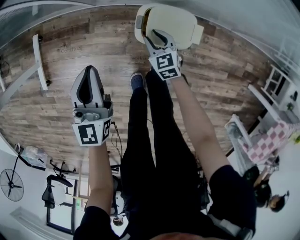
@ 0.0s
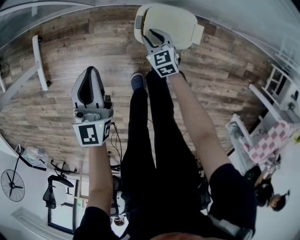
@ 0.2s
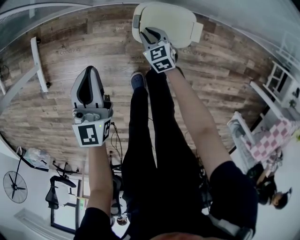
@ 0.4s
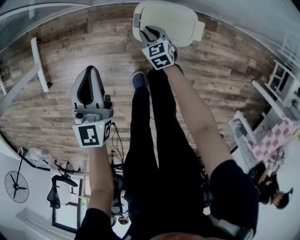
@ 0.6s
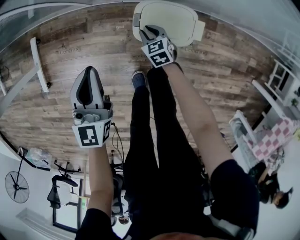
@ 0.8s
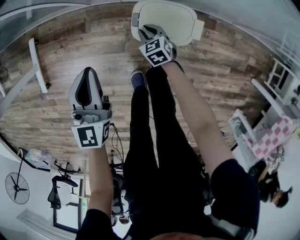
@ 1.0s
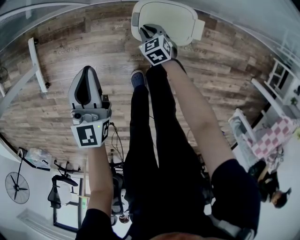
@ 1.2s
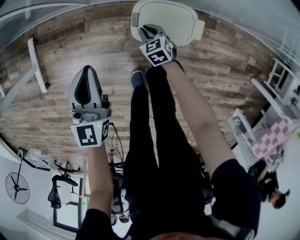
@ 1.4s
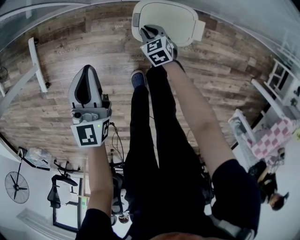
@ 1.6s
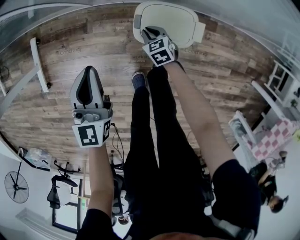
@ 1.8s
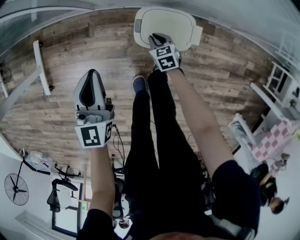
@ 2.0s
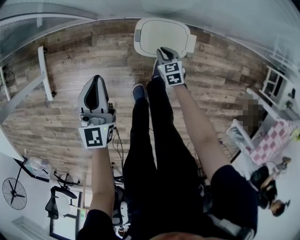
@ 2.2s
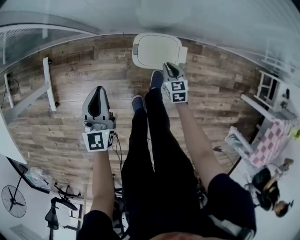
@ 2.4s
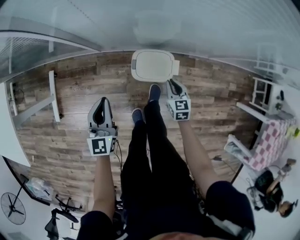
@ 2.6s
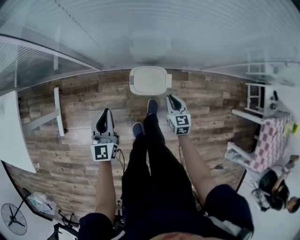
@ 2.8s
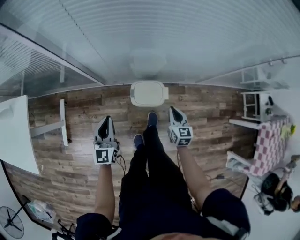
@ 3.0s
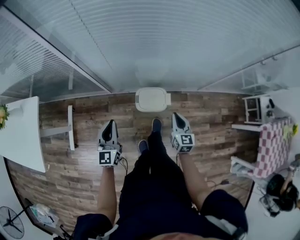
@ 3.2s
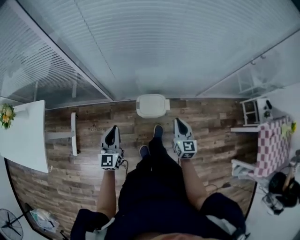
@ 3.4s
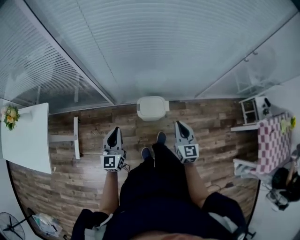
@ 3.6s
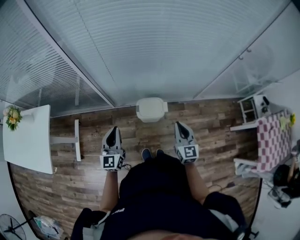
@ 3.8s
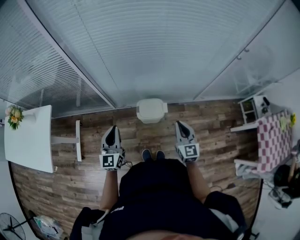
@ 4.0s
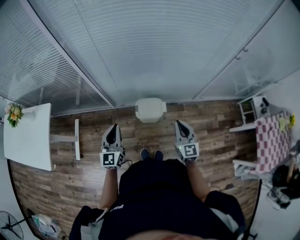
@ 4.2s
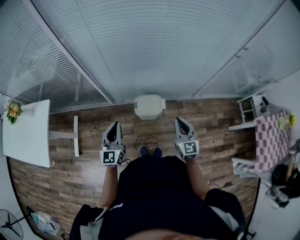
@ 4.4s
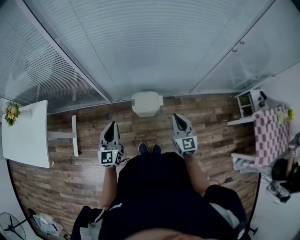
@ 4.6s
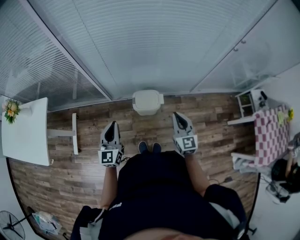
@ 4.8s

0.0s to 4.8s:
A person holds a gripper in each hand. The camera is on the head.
0.0s to 1.6s: The right gripper moves downward, some 10 cm, and closes up.
1.6s to 3.2s: The right gripper shifts roughly 40 cm upward, and points its fingers approximately 30 degrees further upward. Meanwhile the left gripper shifts approximately 25 cm upward.
3.2s to 4.8s: The left gripper is displaced backward and upward by some 10 cm. The right gripper goes approximately 15 cm upward and backward.

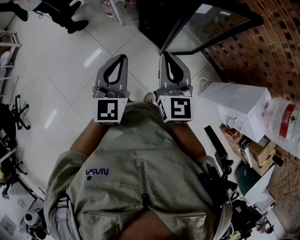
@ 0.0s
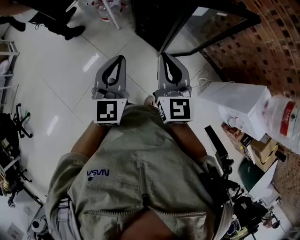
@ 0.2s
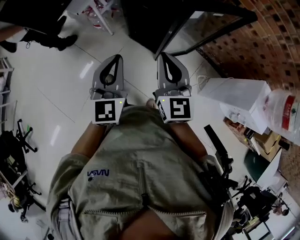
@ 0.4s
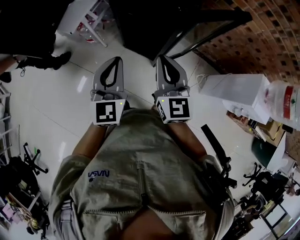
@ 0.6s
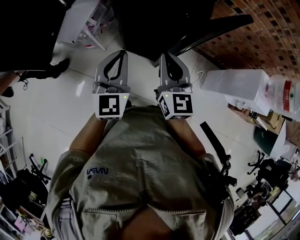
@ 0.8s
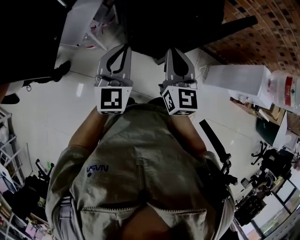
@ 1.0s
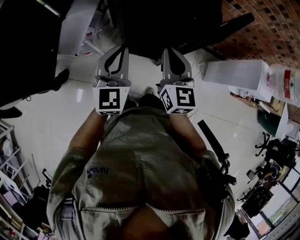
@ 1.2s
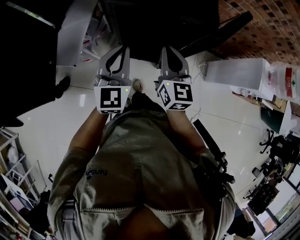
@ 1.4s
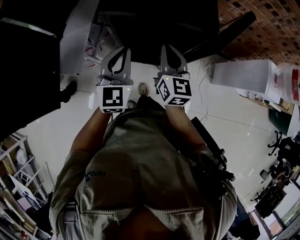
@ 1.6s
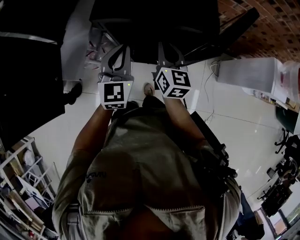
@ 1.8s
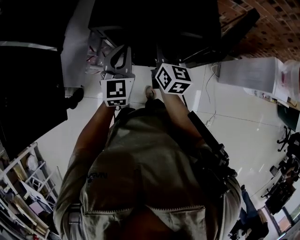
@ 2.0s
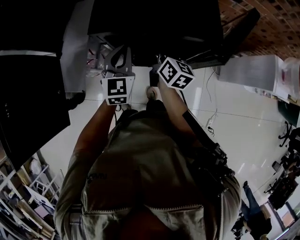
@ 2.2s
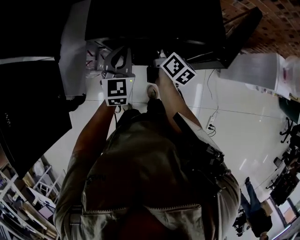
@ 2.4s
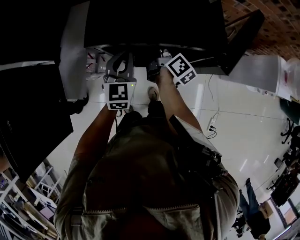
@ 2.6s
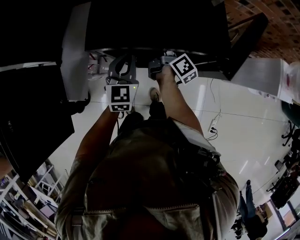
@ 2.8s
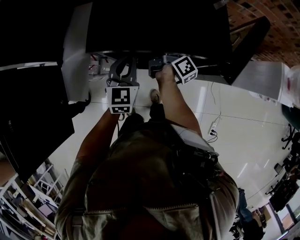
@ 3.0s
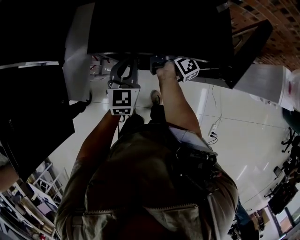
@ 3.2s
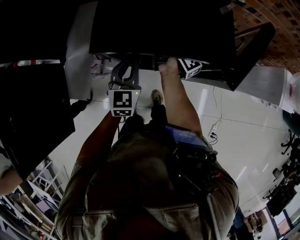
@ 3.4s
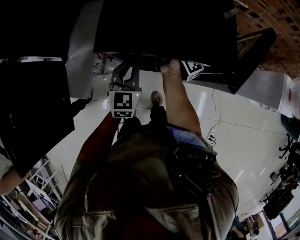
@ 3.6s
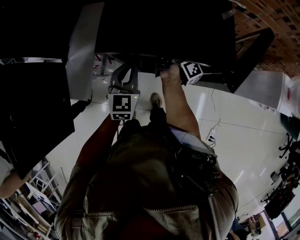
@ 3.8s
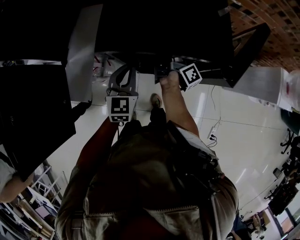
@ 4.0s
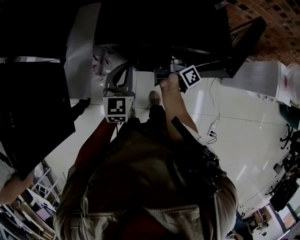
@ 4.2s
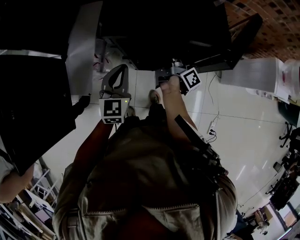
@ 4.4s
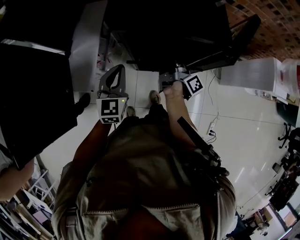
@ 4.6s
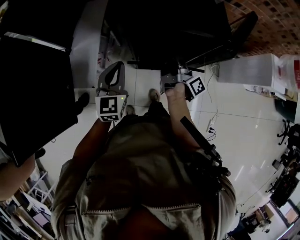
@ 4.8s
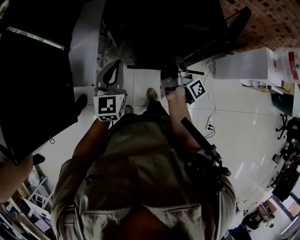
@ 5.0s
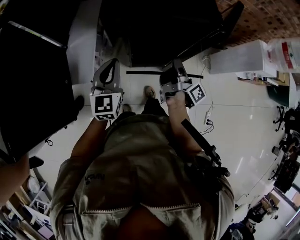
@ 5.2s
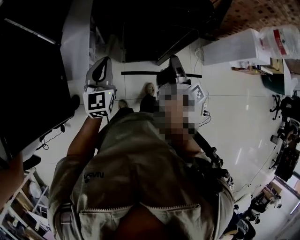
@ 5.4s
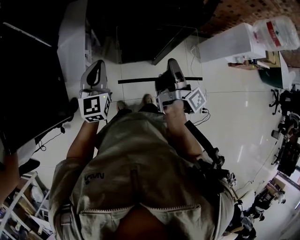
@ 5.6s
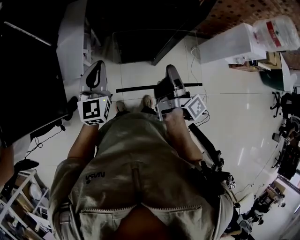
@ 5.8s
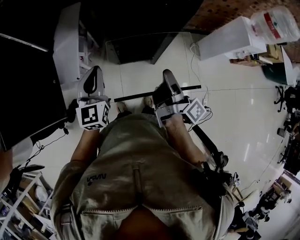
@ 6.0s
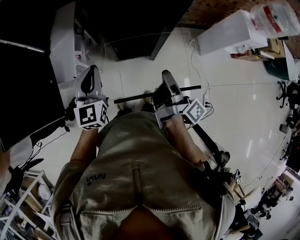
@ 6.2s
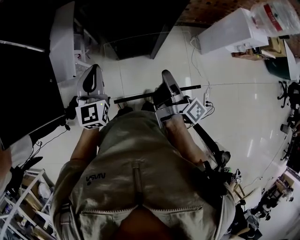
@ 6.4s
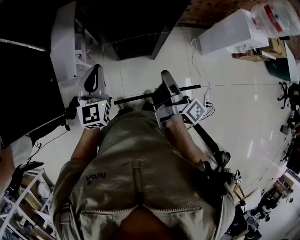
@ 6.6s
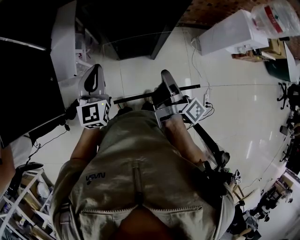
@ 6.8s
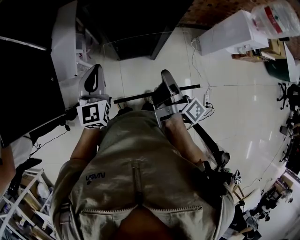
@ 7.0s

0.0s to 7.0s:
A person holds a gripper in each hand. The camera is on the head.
0.0s to 1.4s: The right gripper changes place by approximately 25 cm, and changes its angle by approximately 40 degrees. The left gripper moves approximately 35 cm, and swivels about 30 degrees.
1.4s to 2.8s: Both grippers travel together forward and downward, roughly 20 cm. The right gripper twists roughly 70 degrees clockwise, seen from behind, and opens.
2.8s to 4.2s: The left gripper ends up approximately 5 cm from where it was. The right gripper rotates some 20 degrees, and closes.
4.2s to 5.6s: The left gripper shifts approximately 15 cm backward and to the left. Meanwhile the right gripper goes about 30 cm backward and upward.
5.6s to 7.0s: The right gripper travels backward by roughly 10 cm, while the left gripper heads to the right, covering roughly 5 cm.

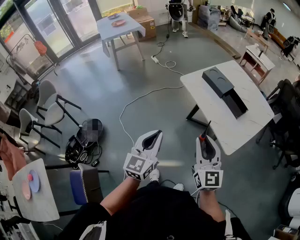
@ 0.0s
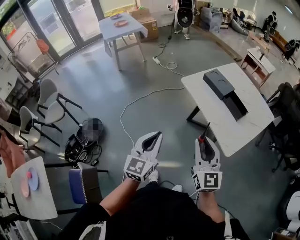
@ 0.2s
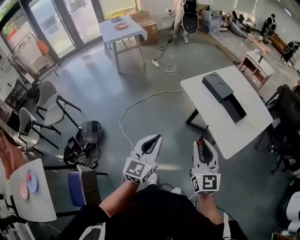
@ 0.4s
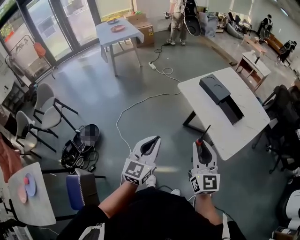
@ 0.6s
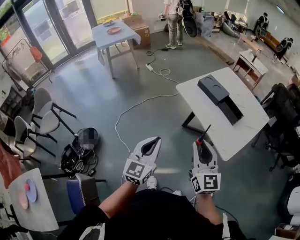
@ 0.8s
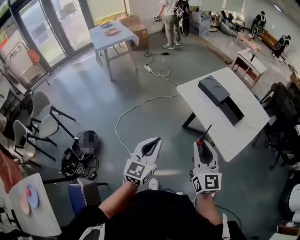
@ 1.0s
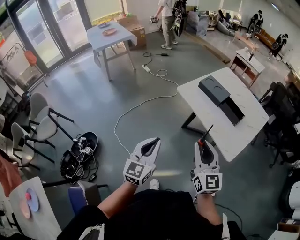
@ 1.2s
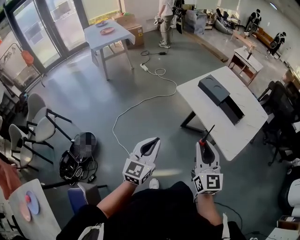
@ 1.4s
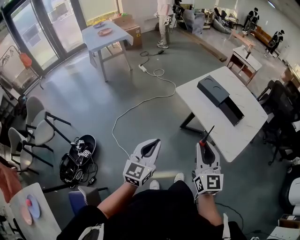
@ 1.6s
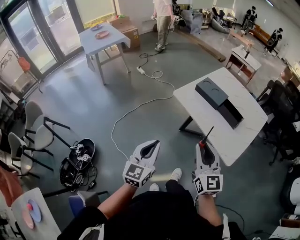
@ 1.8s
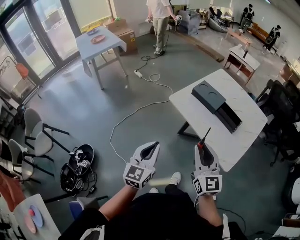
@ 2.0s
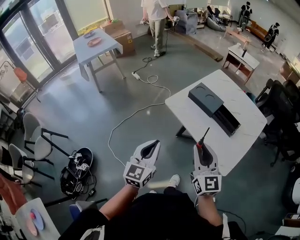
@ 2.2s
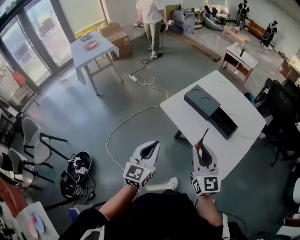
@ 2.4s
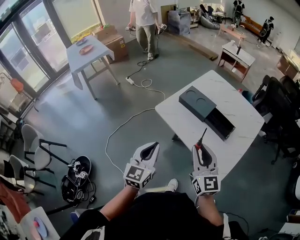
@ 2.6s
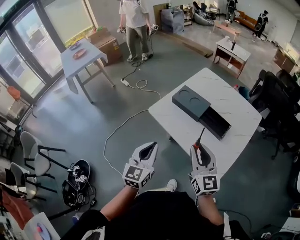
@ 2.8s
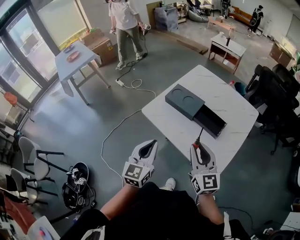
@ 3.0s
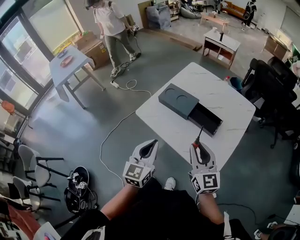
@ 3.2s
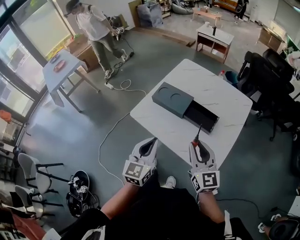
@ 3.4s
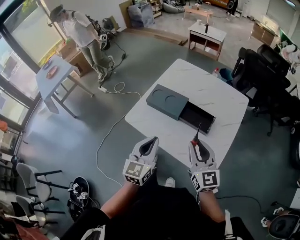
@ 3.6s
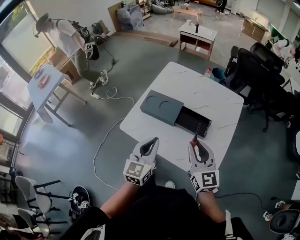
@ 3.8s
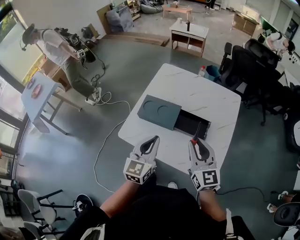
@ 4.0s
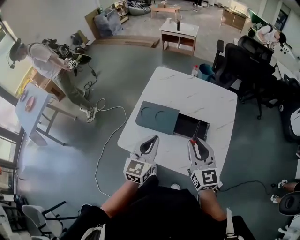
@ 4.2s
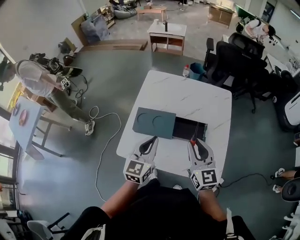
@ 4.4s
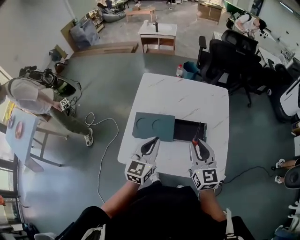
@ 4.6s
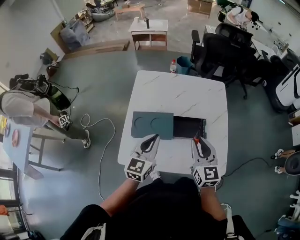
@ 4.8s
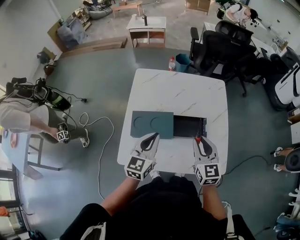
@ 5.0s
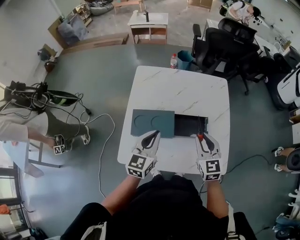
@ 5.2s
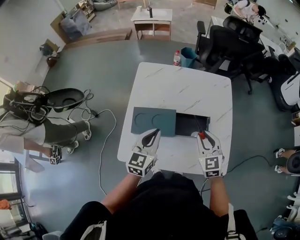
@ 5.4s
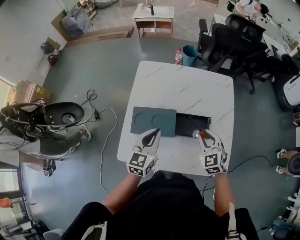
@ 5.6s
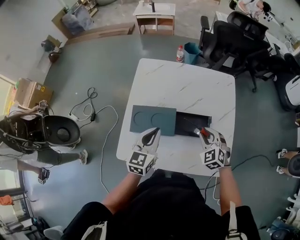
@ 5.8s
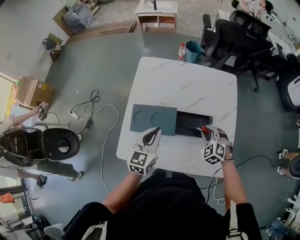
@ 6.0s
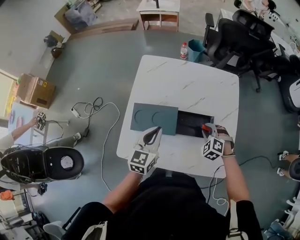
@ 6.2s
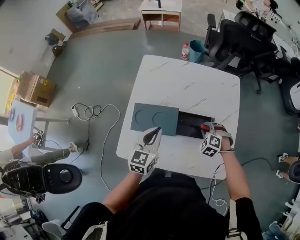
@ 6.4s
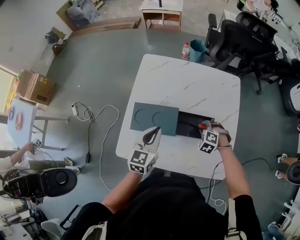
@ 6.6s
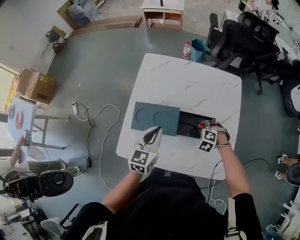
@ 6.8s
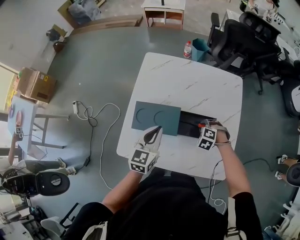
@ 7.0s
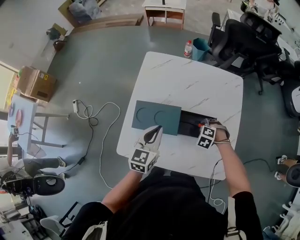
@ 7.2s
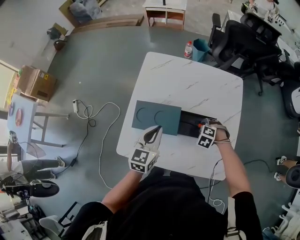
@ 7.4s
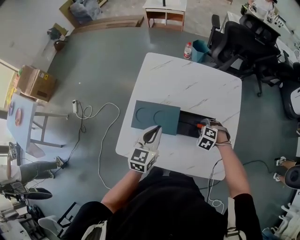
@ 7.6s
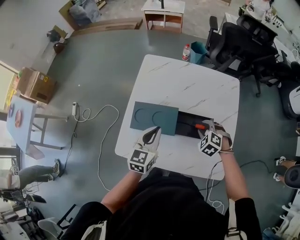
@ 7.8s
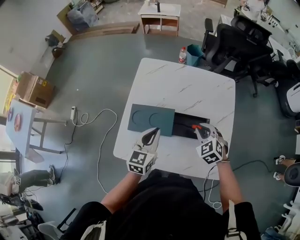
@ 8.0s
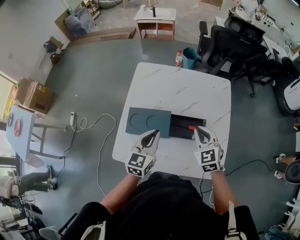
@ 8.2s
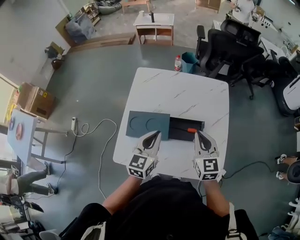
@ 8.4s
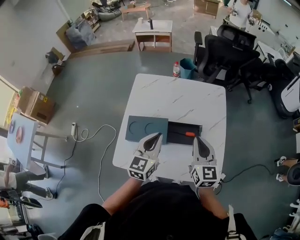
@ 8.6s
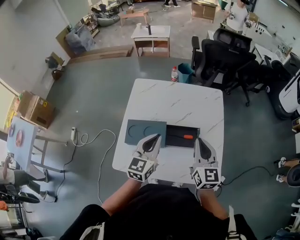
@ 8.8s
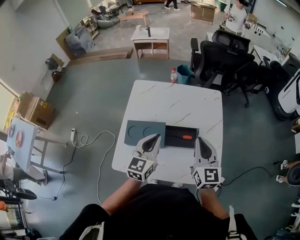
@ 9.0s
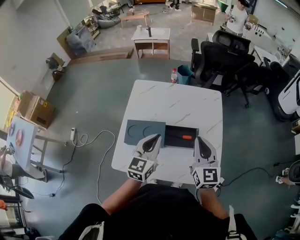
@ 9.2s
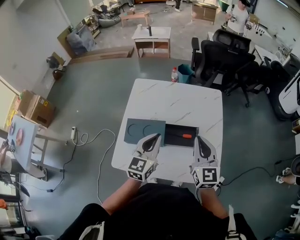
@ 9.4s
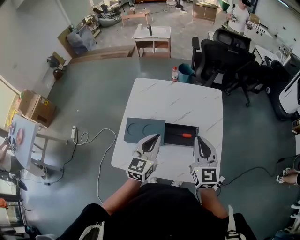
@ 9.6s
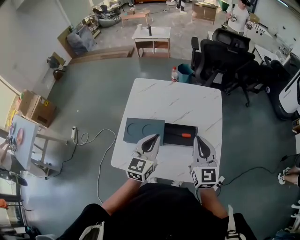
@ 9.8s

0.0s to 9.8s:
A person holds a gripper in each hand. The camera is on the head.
0.0s to 1.4s: The right gripper changes place by some 5 cm. The left gripper heads to the left, covering some 5 cm.
1.4s to 2.8s: The two grippers go about 25 cm forward and to the right.
2.8s to 4.2s: The right gripper heads forward and to the right, covering about 20 cm, and rotates about 20 degrees, while the left gripper goes some 25 cm forward, and rotates about 30 degrees.
4.2s to 5.6s: The left gripper moves forward and downward, about 10 cm; the right gripper moves downward and forward, some 15 cm, and changes its angle by some 40 degrees.
5.6s to 7.0s: The right gripper heads downward, covering approximately 15 cm, and points its fingers approximately 40 degrees further downward.
7.0s to 8.4s: The right gripper shifts roughly 25 cm upward, tips its fingers upward by about 60 degrees, and closes up; the left gripper heads upward, covering approximately 5 cm.
8.4s to 9.8s: The right gripper goes approximately 5 cm upward.

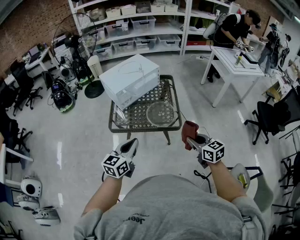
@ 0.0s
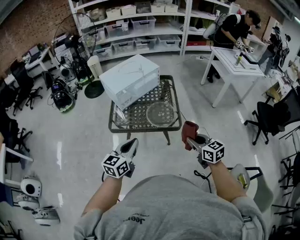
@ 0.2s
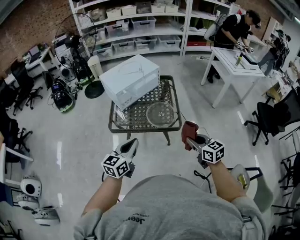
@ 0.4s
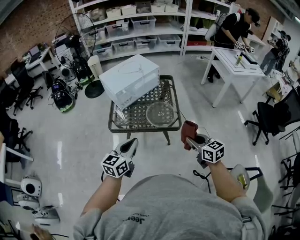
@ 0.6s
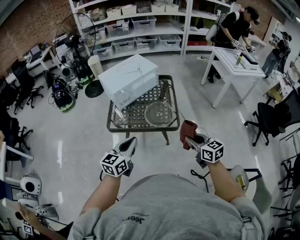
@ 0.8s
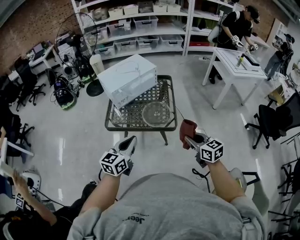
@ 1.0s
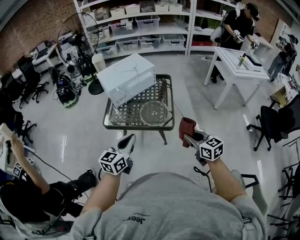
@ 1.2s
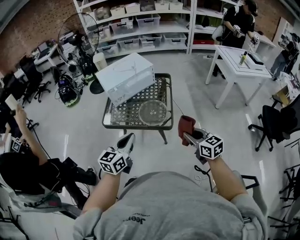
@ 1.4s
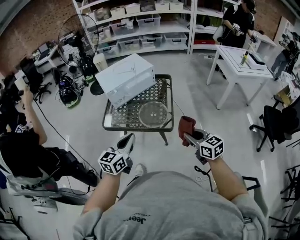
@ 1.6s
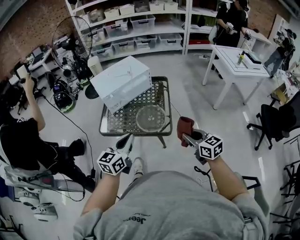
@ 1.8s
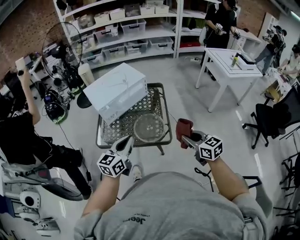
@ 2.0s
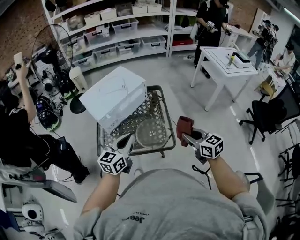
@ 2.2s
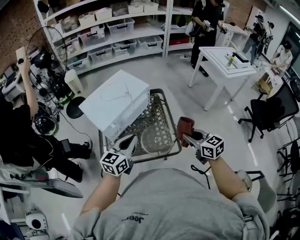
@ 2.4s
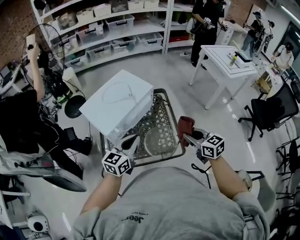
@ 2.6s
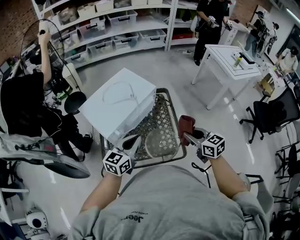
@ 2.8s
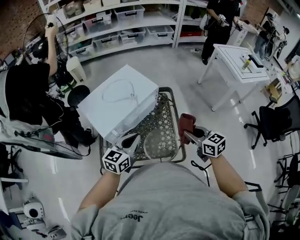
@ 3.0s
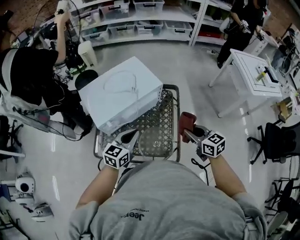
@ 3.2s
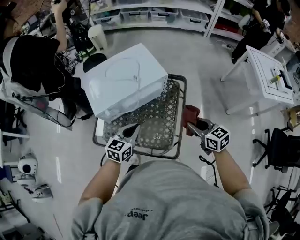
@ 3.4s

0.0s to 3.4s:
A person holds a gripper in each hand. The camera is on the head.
0.0s to 1.6s: Both grippers move to the right, some 10 cm.
1.6s to 3.4s: The left gripper moves forward and downward, some 40 cm; the right gripper travels forward by some 40 cm.
